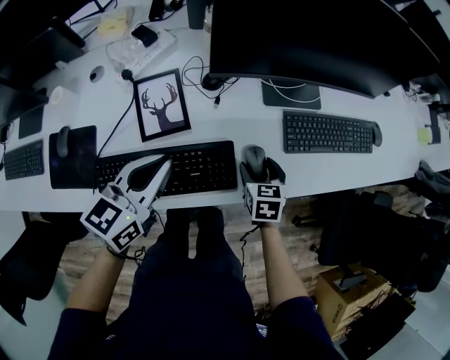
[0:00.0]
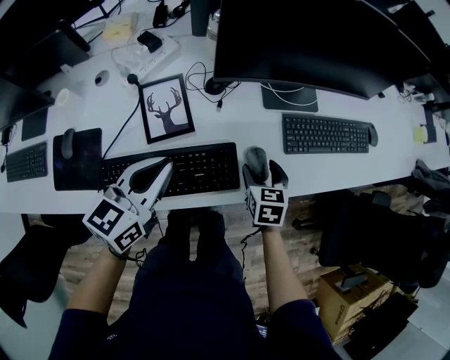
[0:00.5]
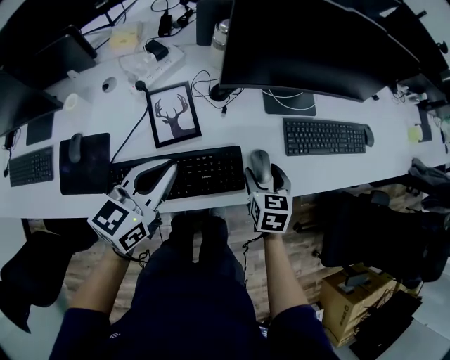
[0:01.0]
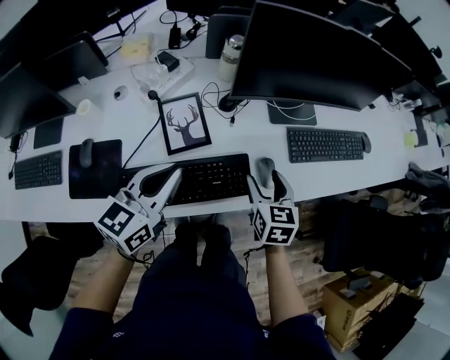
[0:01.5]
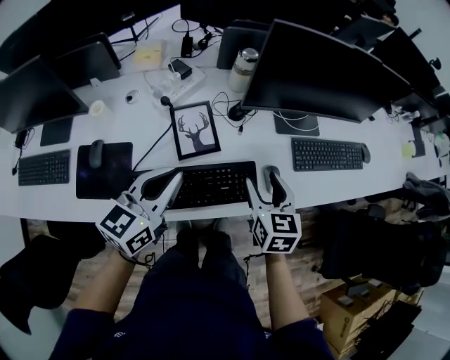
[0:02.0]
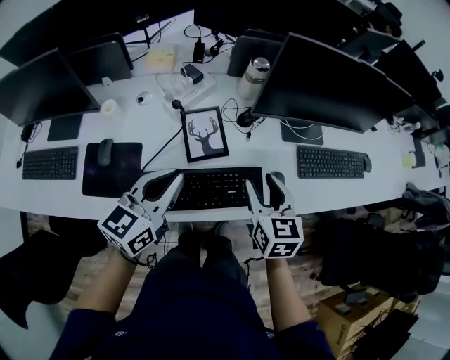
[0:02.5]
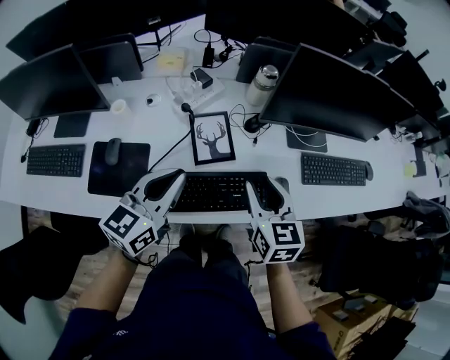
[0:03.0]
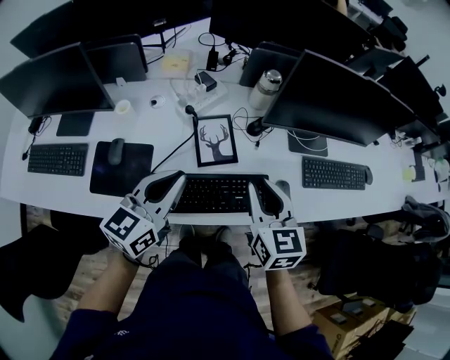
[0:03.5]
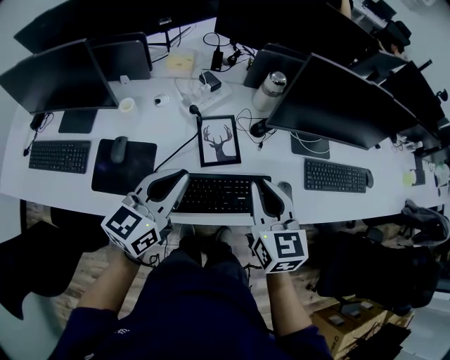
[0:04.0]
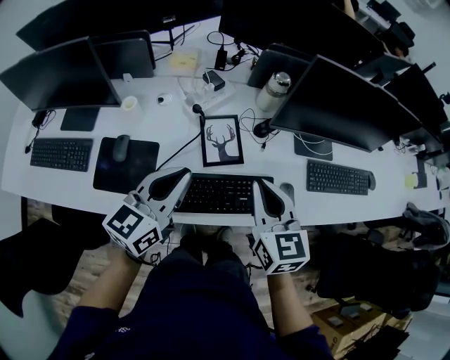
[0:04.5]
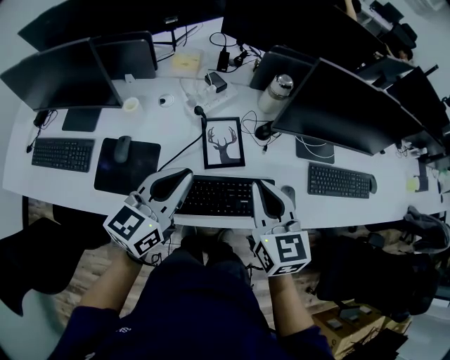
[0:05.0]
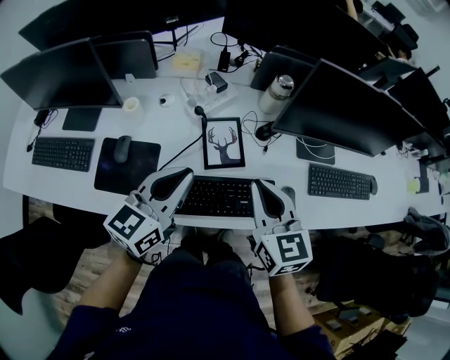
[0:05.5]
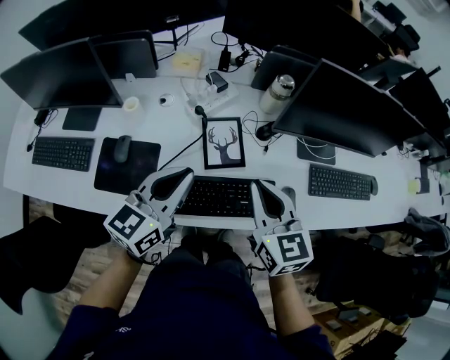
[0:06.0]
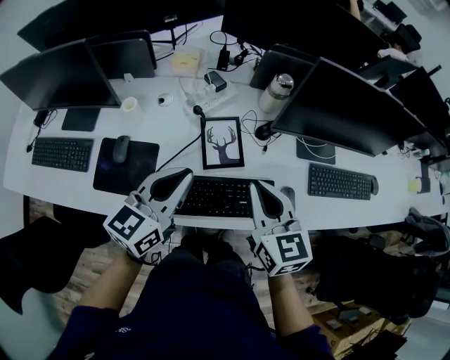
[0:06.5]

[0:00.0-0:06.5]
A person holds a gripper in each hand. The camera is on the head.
0:00.0 to 0:02.0: The left gripper goes about 10 cm to the left and upward. The right gripper is displaced upward and to the left by some 20 cm.
0:02.0 to 0:04.5: The right gripper is displaced to the left and upward by about 15 cm, and closes its fingers, while the left gripper heads to the left, covering about 5 cm.
0:04.5 to 0:06.5: The grippers move only a little.

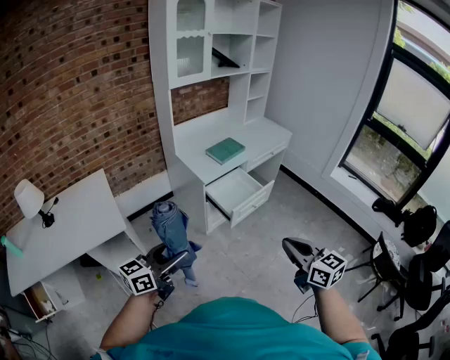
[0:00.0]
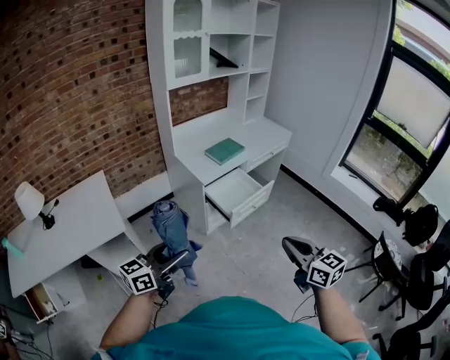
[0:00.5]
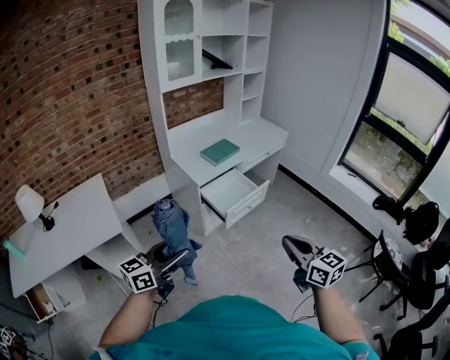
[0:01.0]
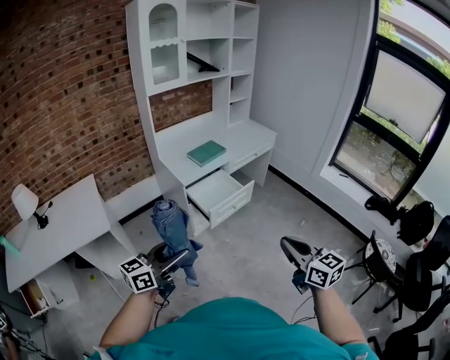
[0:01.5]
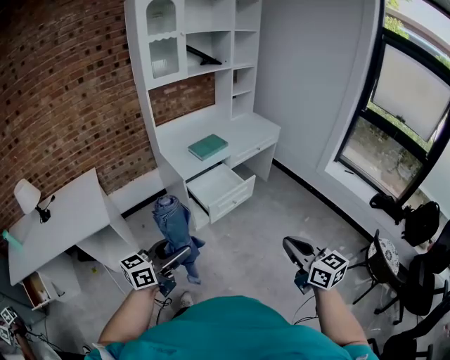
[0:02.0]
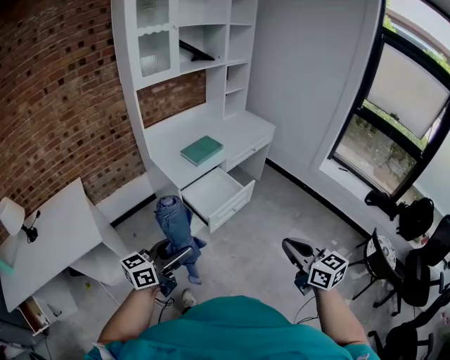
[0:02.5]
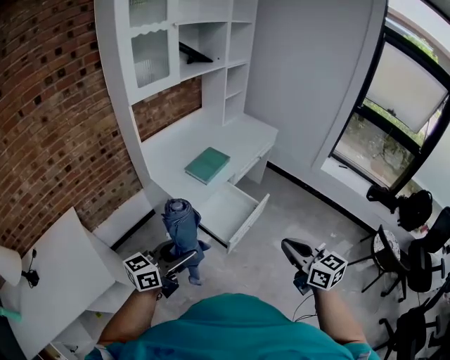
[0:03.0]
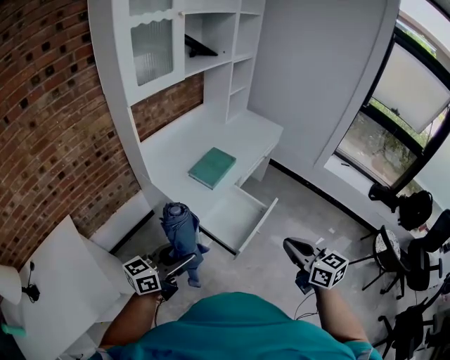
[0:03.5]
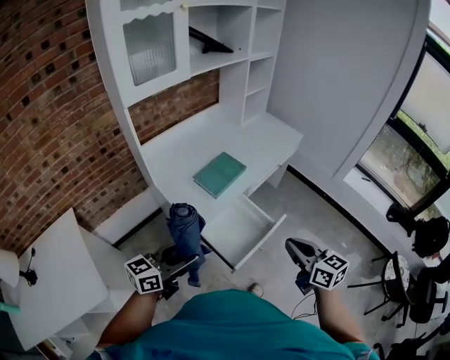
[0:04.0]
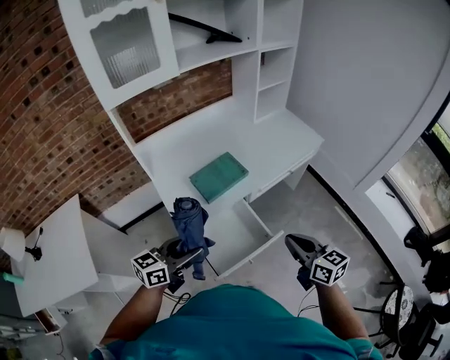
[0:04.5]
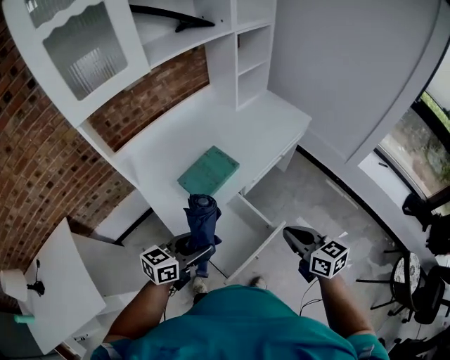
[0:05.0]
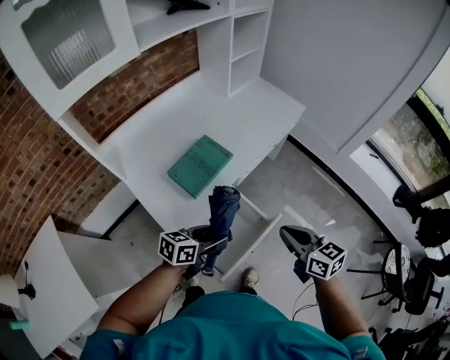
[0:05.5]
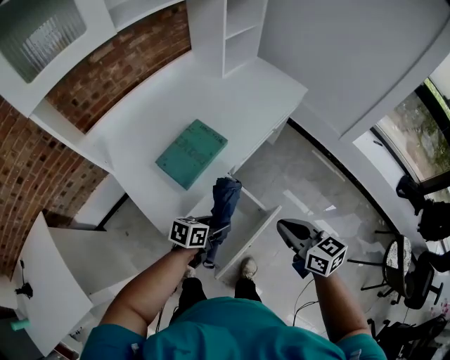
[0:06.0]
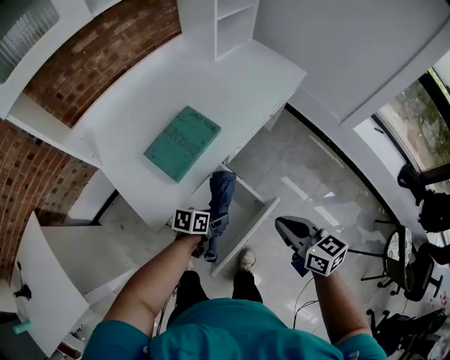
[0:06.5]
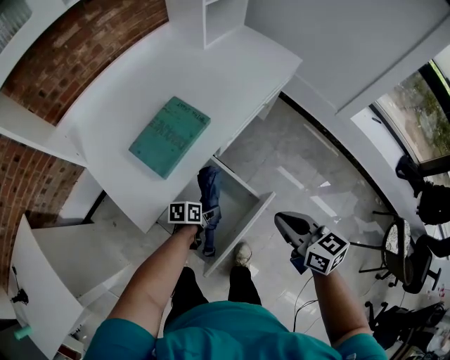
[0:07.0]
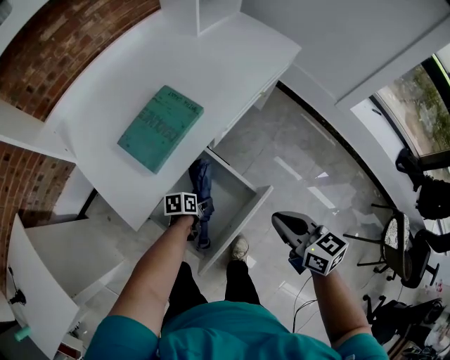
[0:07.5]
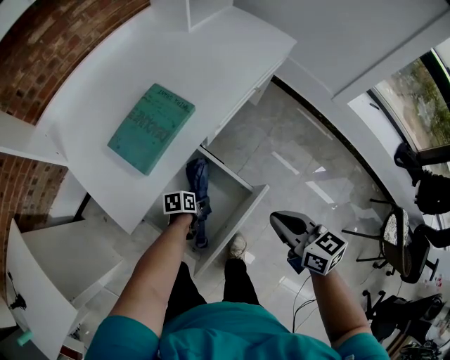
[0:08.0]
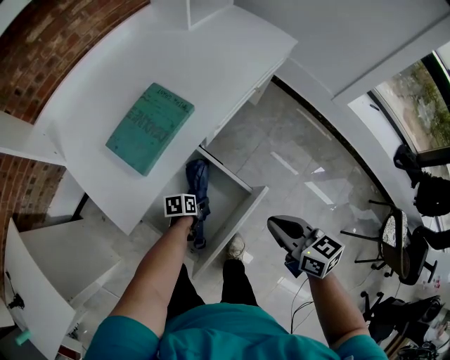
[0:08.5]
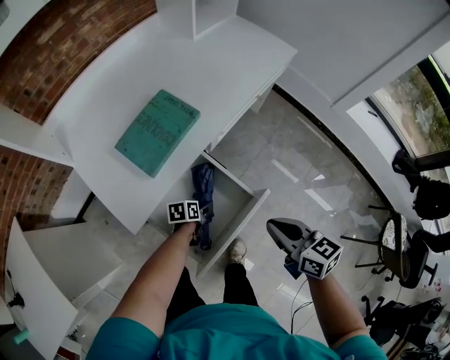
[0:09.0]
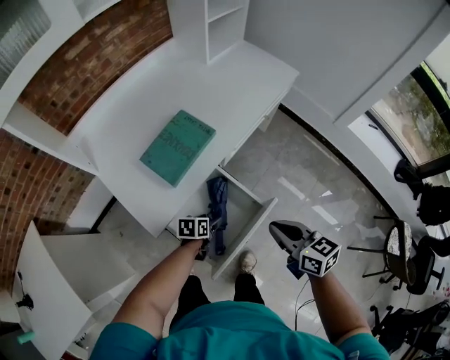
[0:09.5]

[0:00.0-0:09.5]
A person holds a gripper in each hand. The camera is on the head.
0:00.0 to 0:02.0: Both grippers move to the right, about 15 cm.
0:02.0 to 0:04.0: Both grippers are carried forward and to the left, roughly 40 cm.
0:04.0 to 0:05.5: The left gripper heads forward, downward and to the right, covering some 30 cm, and rotates about 30 degrees, while the right gripper heads forward and downward, covering about 15 cm.
0:05.5 to 0:07.5: The left gripper goes roughly 30 cm downward, and rotates approximately 40 degrees; the right gripper goes some 10 cm downward.
0:07.5 to 0:09.5: The left gripper is displaced upward by about 5 cm.

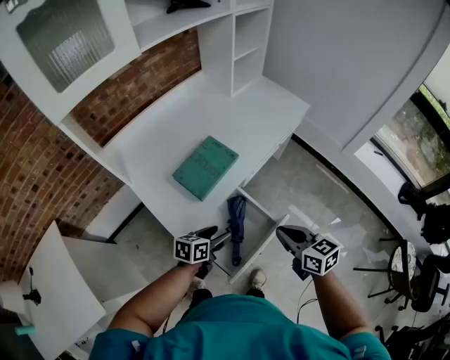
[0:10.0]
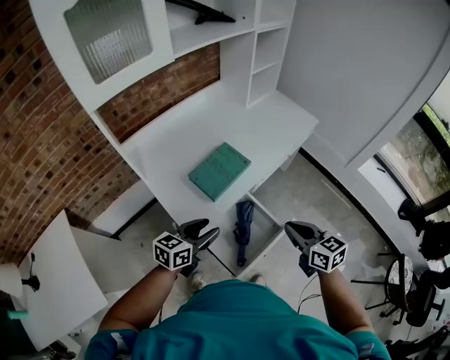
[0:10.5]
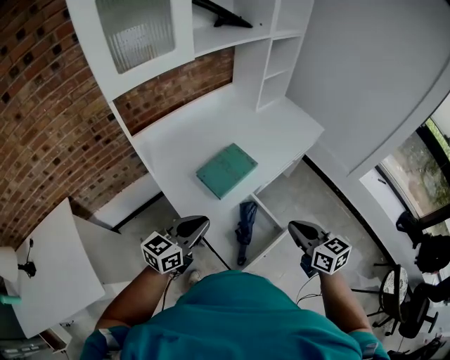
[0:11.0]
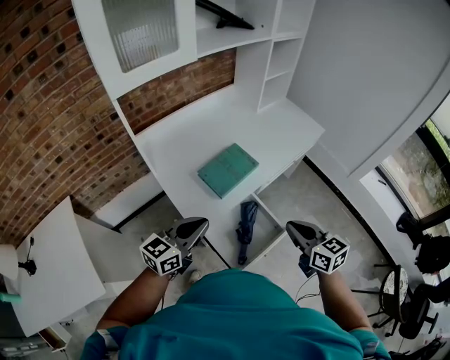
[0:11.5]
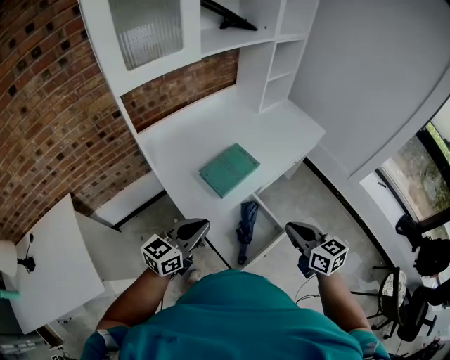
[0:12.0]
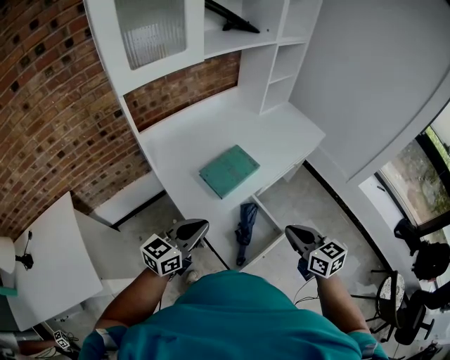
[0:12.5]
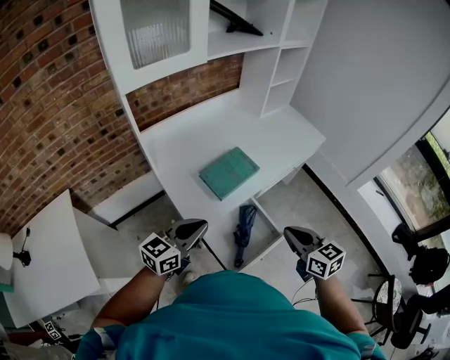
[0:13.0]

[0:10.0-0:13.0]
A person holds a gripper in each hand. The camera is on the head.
0:10.0 to 0:11.5: The right gripper is displaced upward by about 10 cm, while the left gripper heads upward and to the left, covering some 25 cm, changes its angle by approximately 40 degrees, and closes its fingers.
0:11.5 to 0:13.0: The two grippers keep their place.

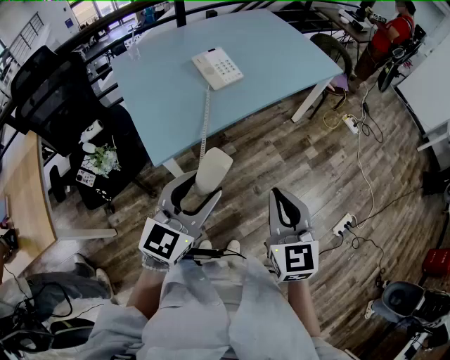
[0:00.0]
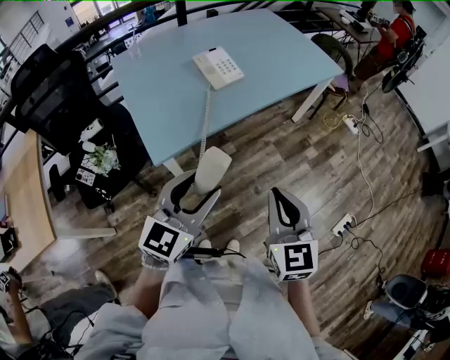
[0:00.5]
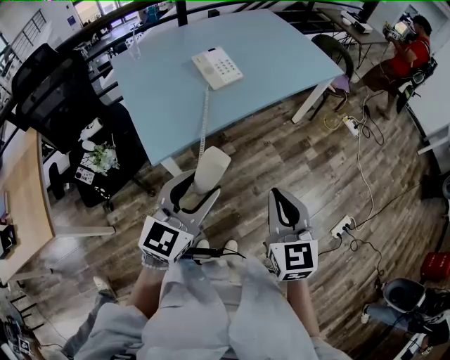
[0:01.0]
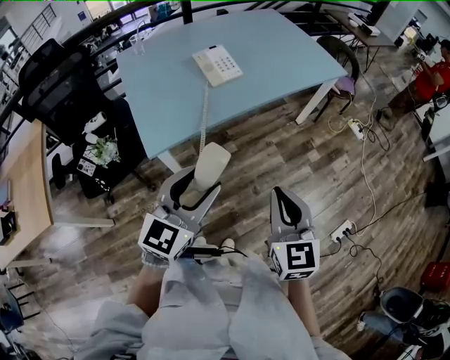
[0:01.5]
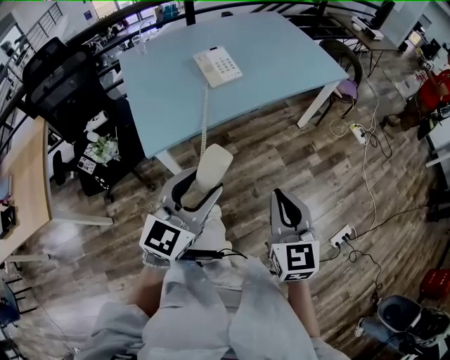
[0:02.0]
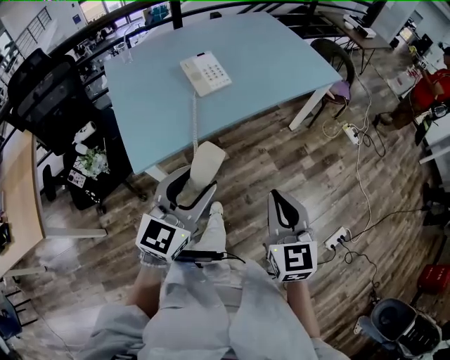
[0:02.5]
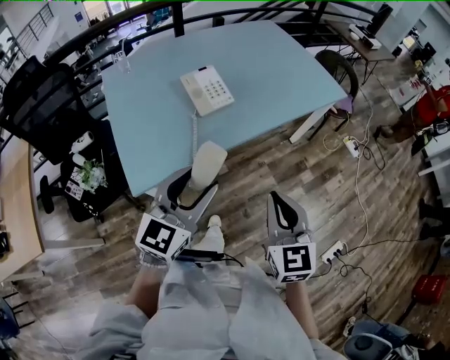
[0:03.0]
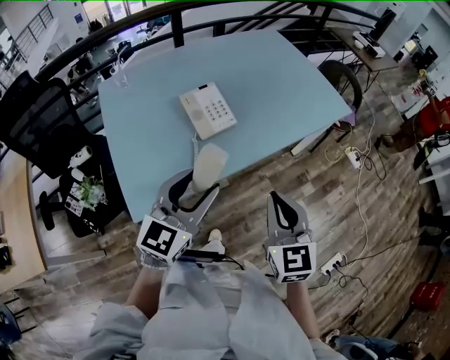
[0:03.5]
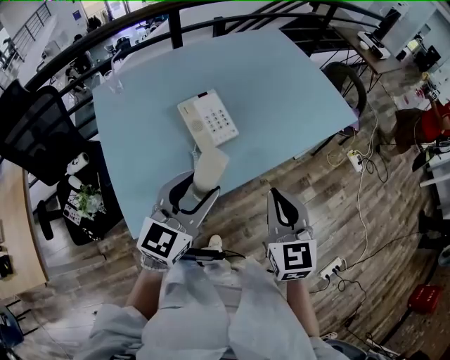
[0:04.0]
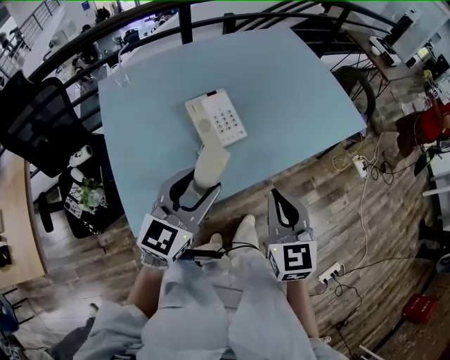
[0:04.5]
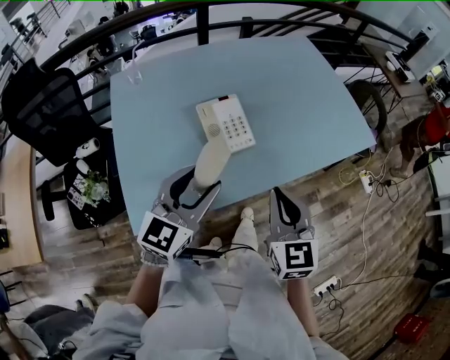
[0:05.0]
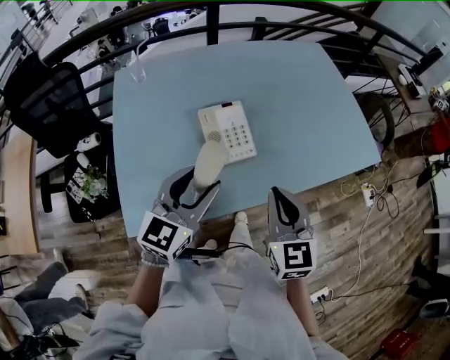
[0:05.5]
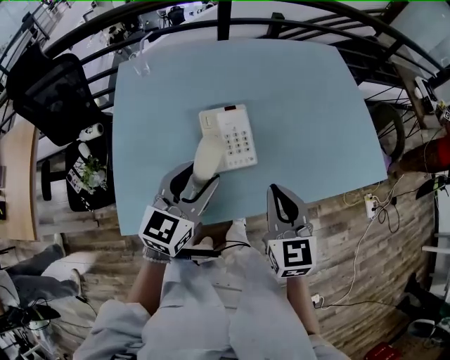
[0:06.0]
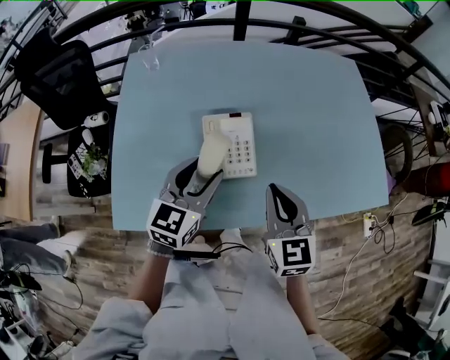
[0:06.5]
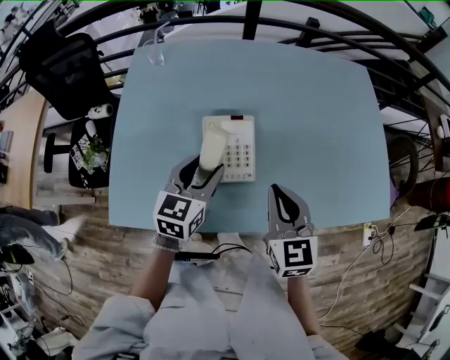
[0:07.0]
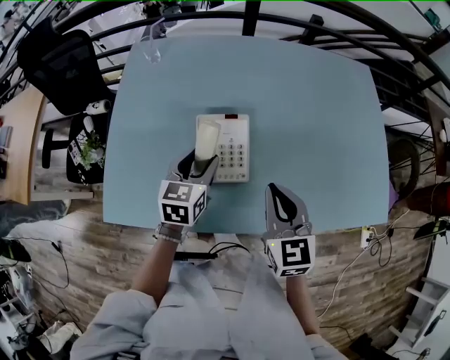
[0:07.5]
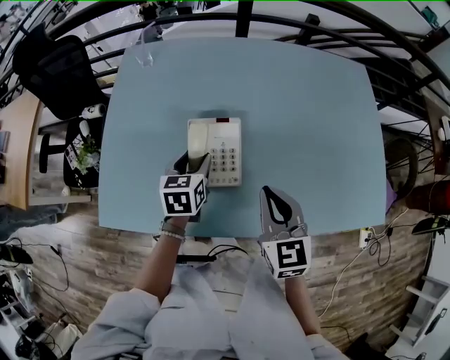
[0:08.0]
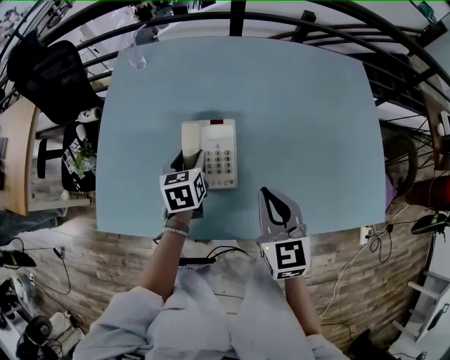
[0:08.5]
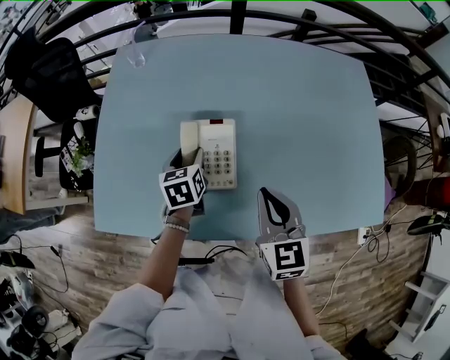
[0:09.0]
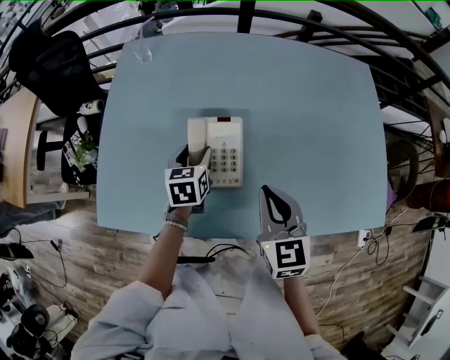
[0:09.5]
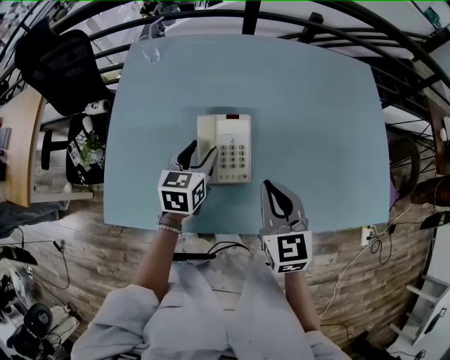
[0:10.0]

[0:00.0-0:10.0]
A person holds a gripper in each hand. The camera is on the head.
0:00.0 to 0:02.0: The two grippers go some 5 cm to the right.
0:02.0 to 0:04.0: The grippers both shift forward by approximately 30 cm.
0:04.0 to 0:06.0: The two grippers go roughly 15 cm forward. The left gripper rotates some 20 degrees.
0:06.0 to 0:08.0: The right gripper heads forward and to the right, covering approximately 10 cm, while the left gripper moves downward and forward, about 20 cm, and changes its angle by approximately 40 degrees.
0:08.0 to 0:10.0: There are only small adjustments of the grippers.
